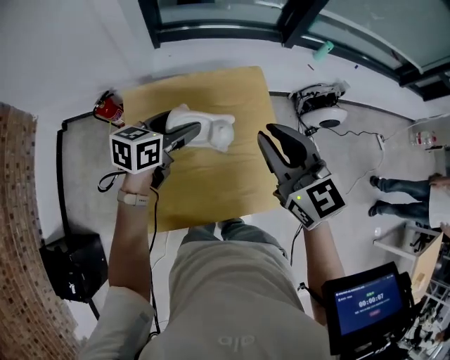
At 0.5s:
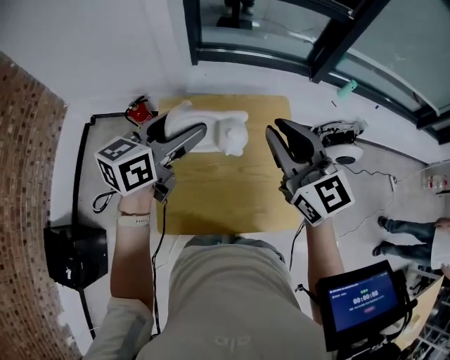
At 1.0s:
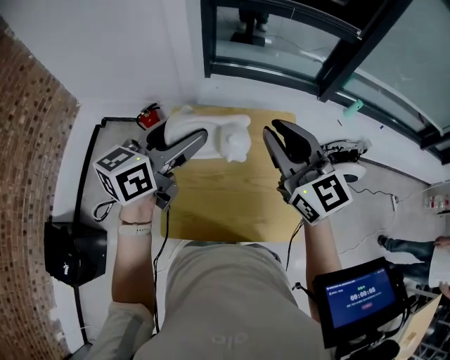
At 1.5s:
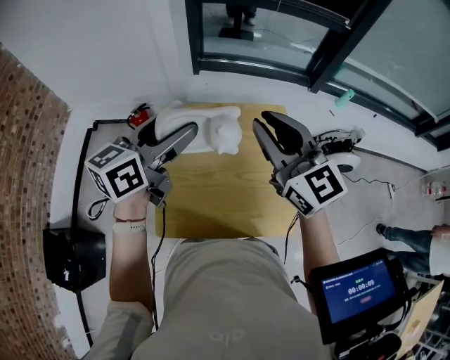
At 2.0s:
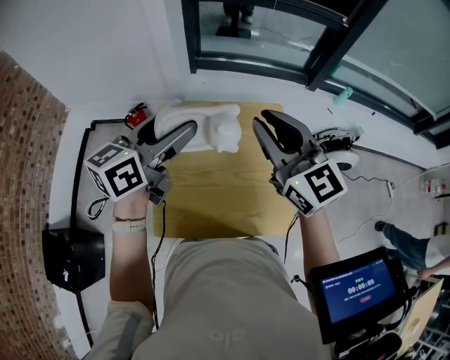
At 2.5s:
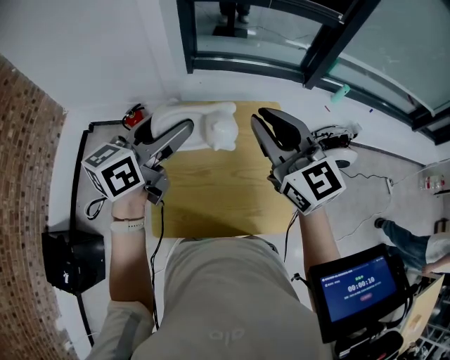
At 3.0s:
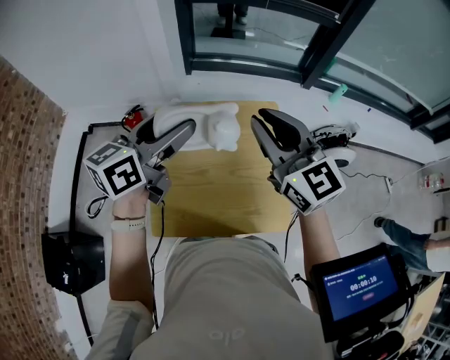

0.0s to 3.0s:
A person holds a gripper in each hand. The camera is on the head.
0.0s to 1.5s: The right gripper goes about 10 cm upward and to the left, while the left gripper moves upward and to the left, roughly 20 cm, and swivels approximately 30 degrees.
1.5s to 3.0s: Both grippers stay put.

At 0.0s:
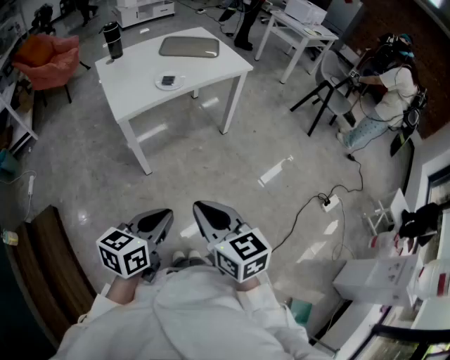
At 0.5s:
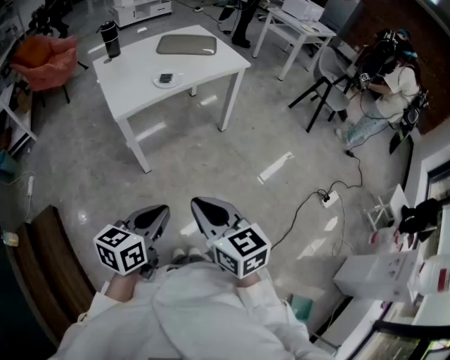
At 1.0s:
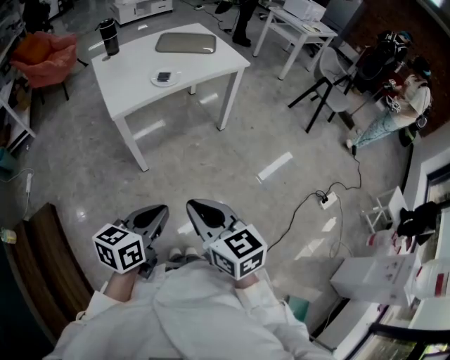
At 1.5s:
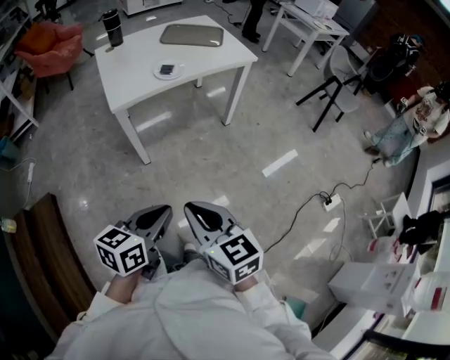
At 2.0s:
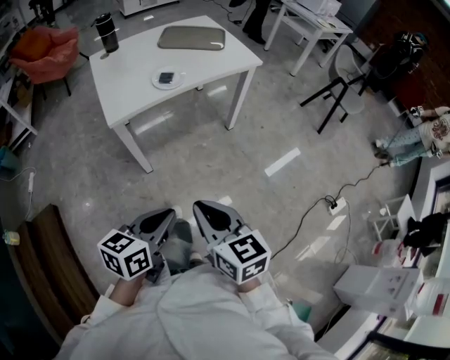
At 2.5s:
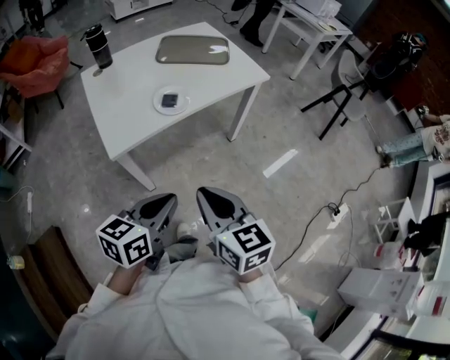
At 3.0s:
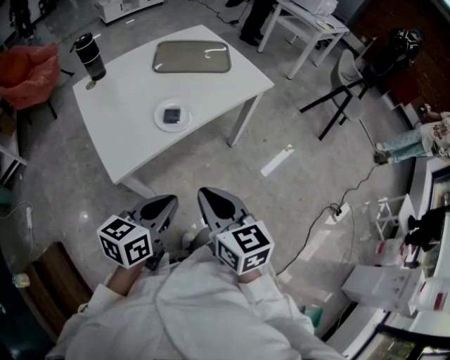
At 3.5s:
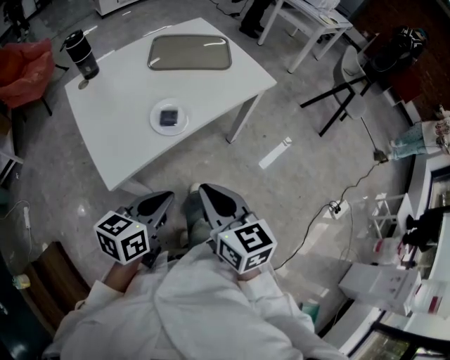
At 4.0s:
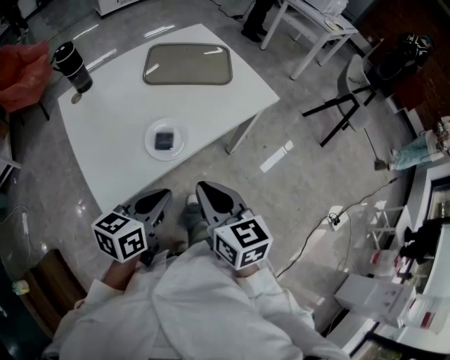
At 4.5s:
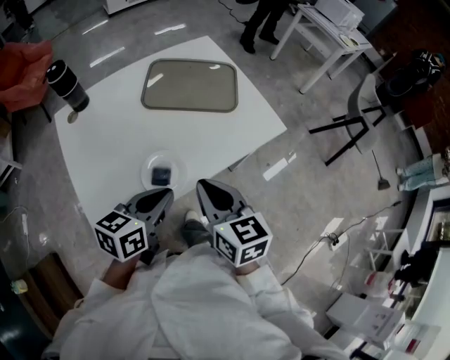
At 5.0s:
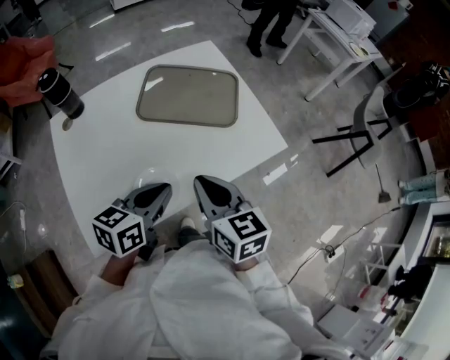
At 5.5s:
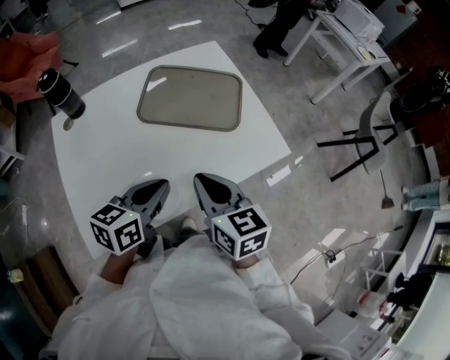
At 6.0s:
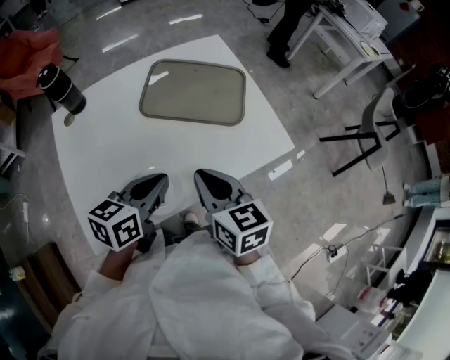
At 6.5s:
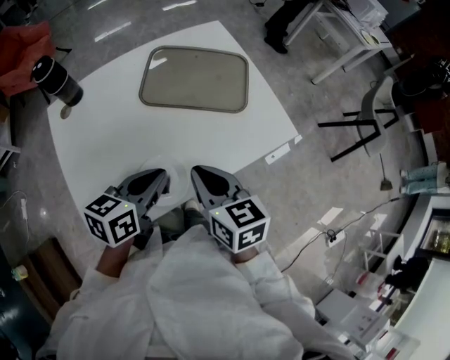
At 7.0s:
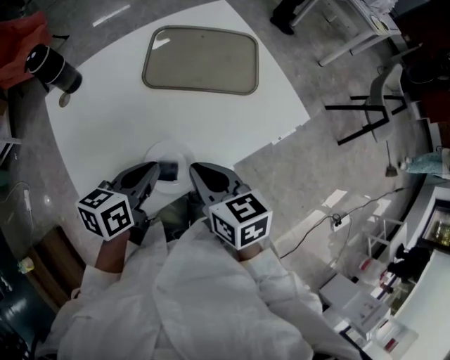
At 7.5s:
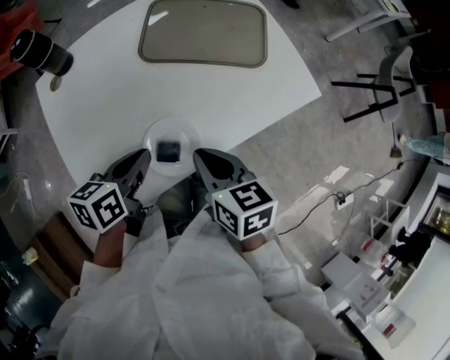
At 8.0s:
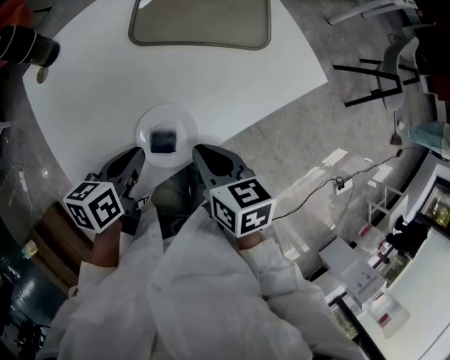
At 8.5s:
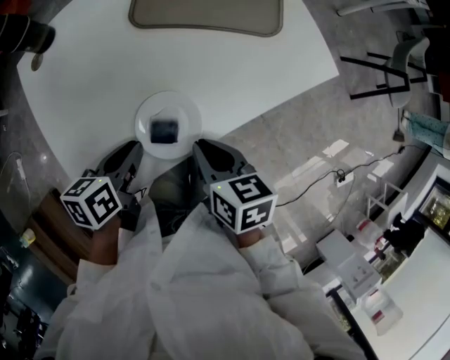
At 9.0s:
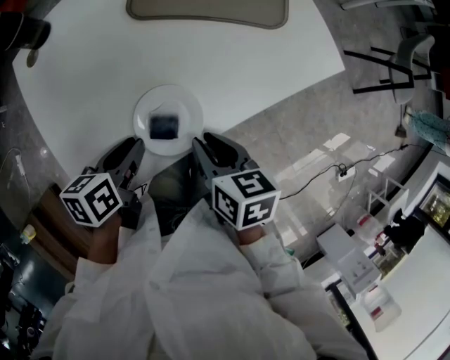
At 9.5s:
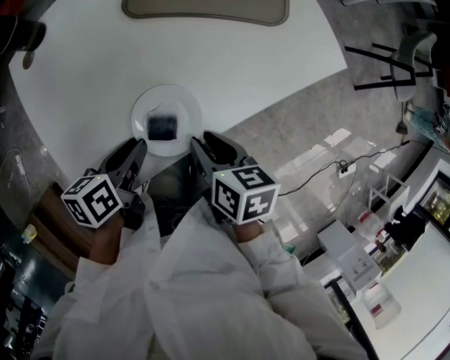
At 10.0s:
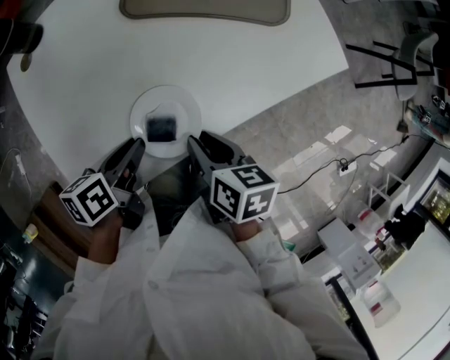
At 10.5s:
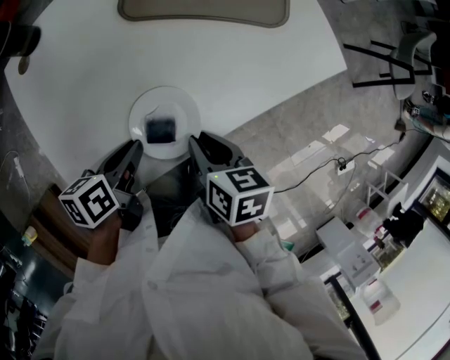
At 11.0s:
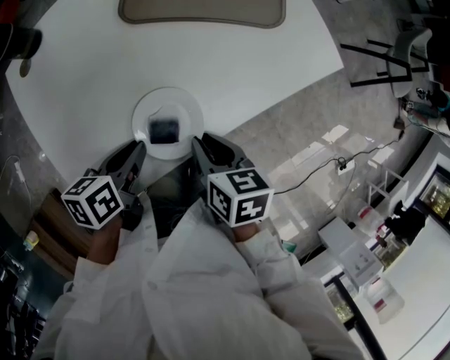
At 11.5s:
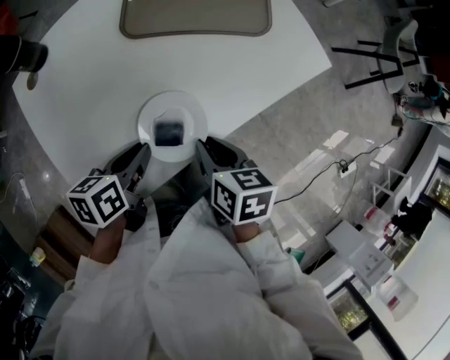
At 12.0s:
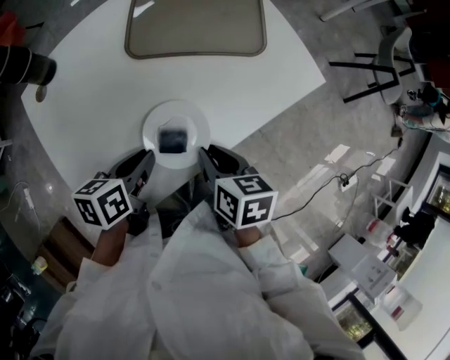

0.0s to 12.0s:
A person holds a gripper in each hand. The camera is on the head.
0.0s to 2.0s: The grippers both shift forward by roughly 10 cm.
2.0s to 4.0s: The two grippers travel together, forward, approximately 40 cm.
4.0s to 6.0s: The two grippers go some 25 cm forward.
6.0s to 8.0s: The right gripper is displaced downward by about 10 cm, and swivels roughly 20 degrees. Meanwhile the left gripper travels downward and to the left by some 15 cm, and changes its angle by some 20 degrees.
8.0s to 10.0s: The right gripper is displaced downward by roughly 5 cm, and opens its fingers.
10.0s to 12.0s: The grippers make only small movements.

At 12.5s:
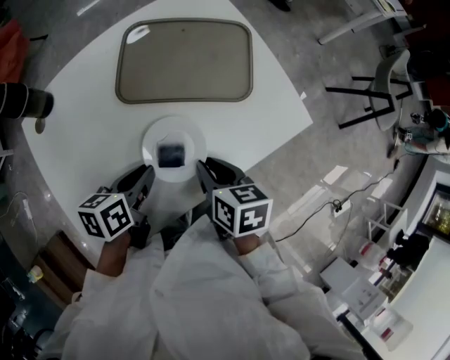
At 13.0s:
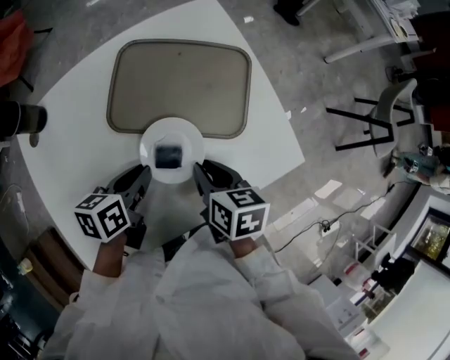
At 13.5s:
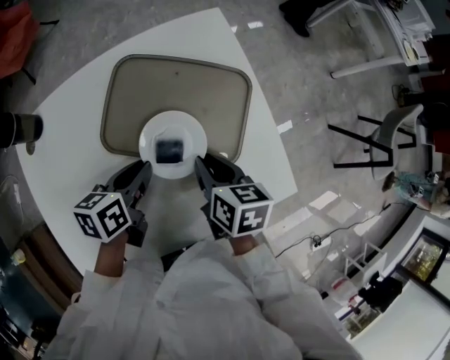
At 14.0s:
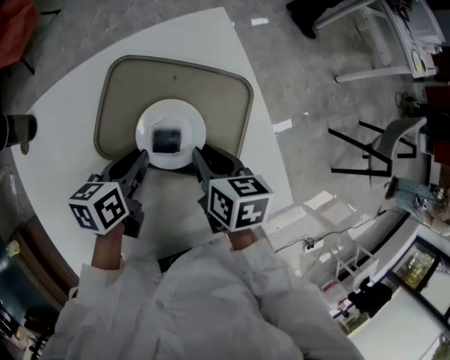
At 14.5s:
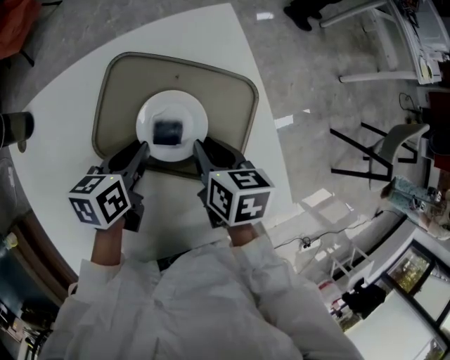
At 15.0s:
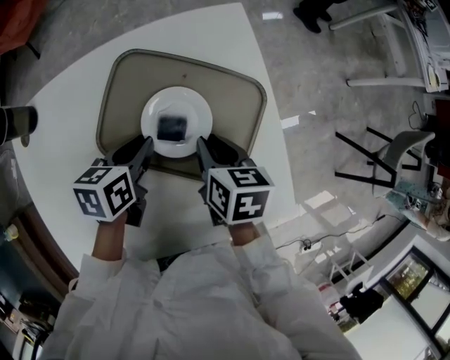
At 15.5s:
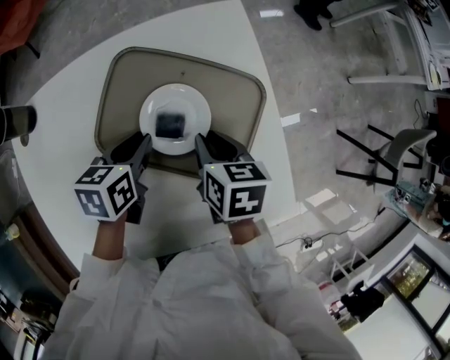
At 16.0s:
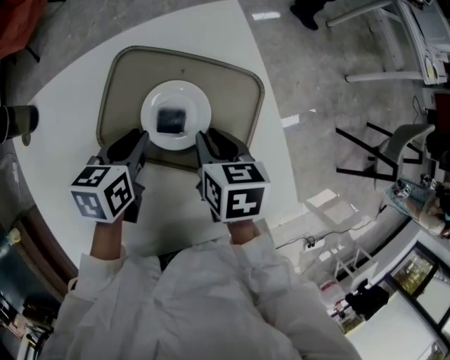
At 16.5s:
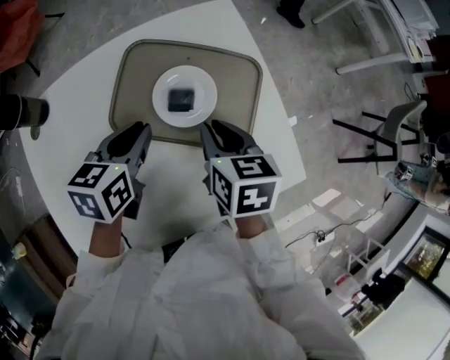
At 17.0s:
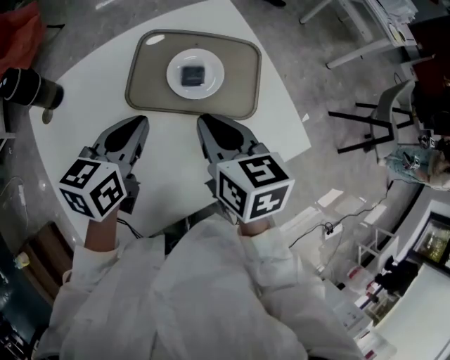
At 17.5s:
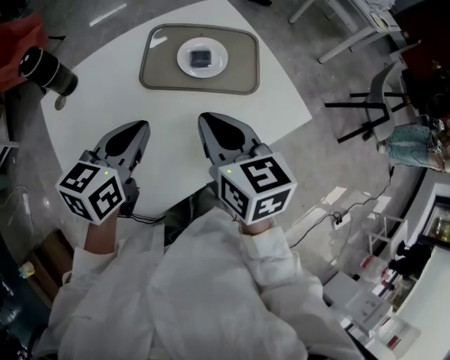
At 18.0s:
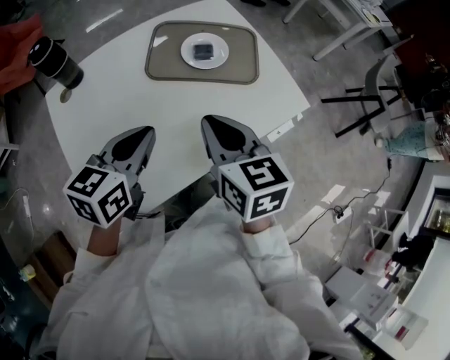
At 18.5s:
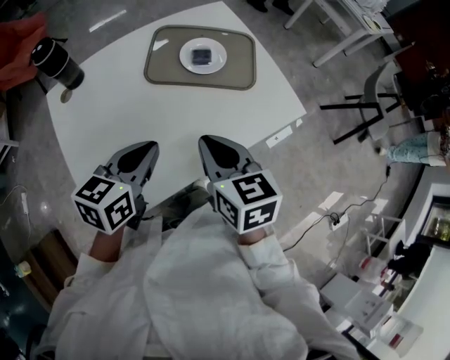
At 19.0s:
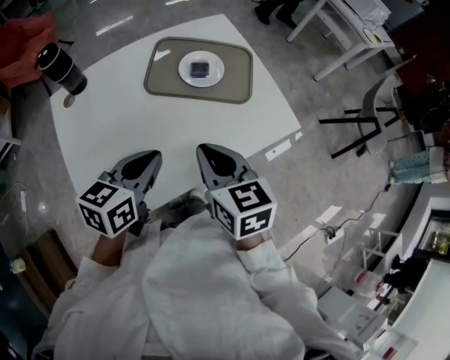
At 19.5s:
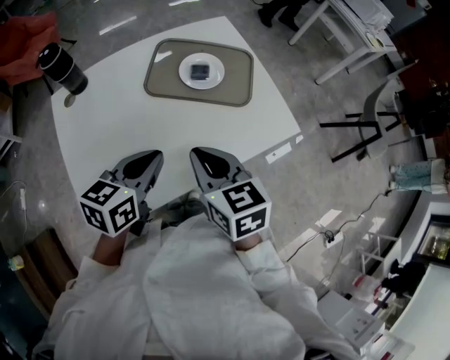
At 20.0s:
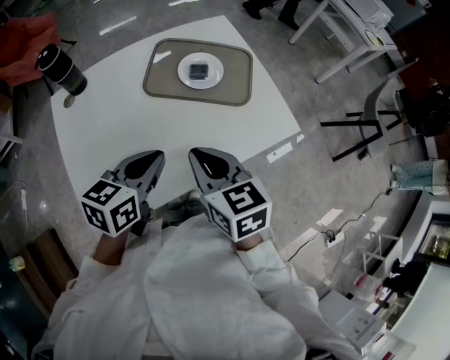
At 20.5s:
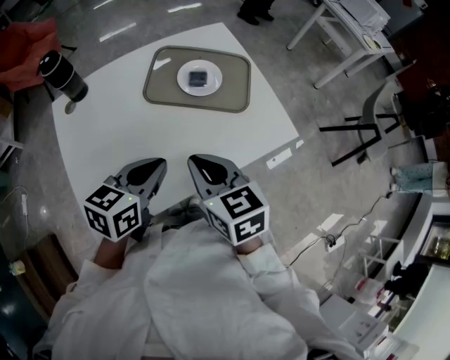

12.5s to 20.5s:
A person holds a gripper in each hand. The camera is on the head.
12.5s to 14.5s: Both grippers travel together forward, some 25 cm.
14.5s to 16.5s: Both grippers move upward, approximately 5 cm.
16.5s to 18.5s: The two grippers go roughly 25 cm backward.
18.5s to 20.5s: The grippers stay close to where they were, moving slightly.

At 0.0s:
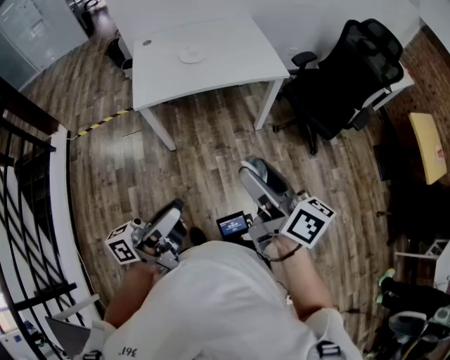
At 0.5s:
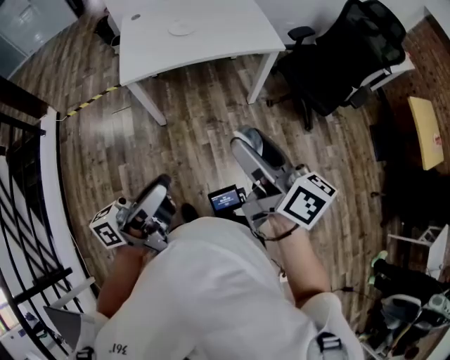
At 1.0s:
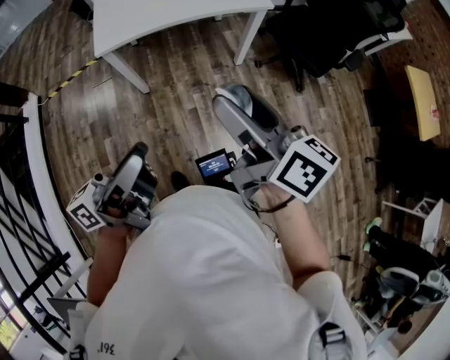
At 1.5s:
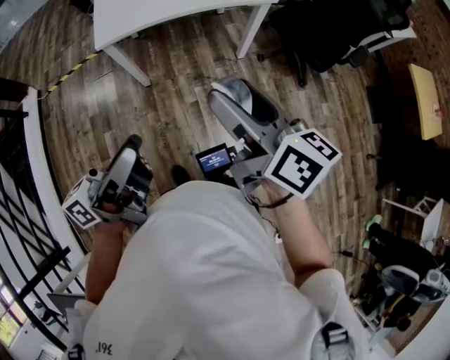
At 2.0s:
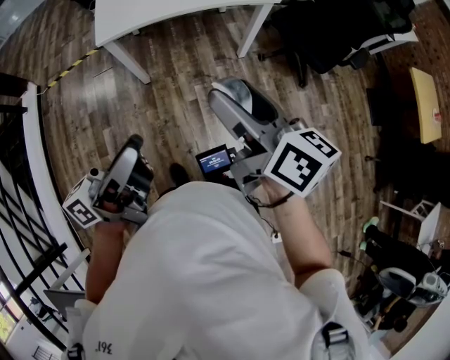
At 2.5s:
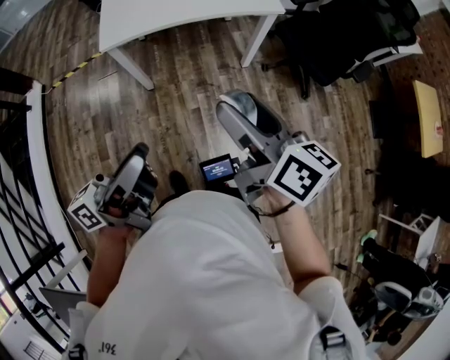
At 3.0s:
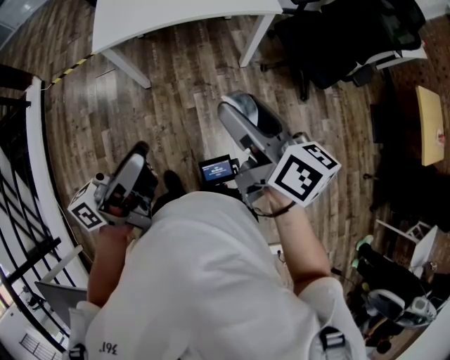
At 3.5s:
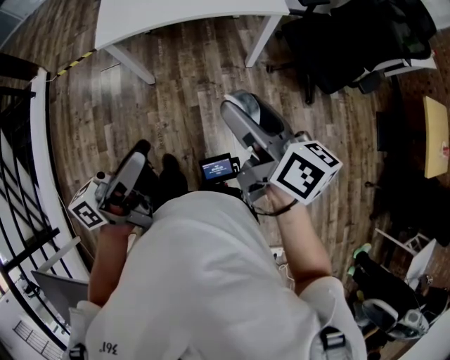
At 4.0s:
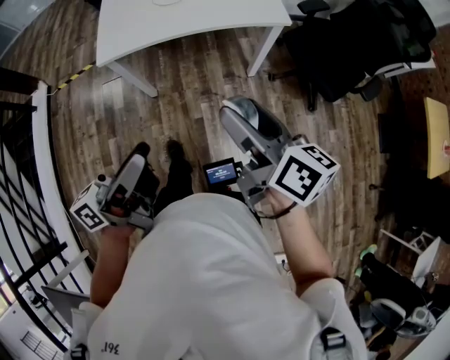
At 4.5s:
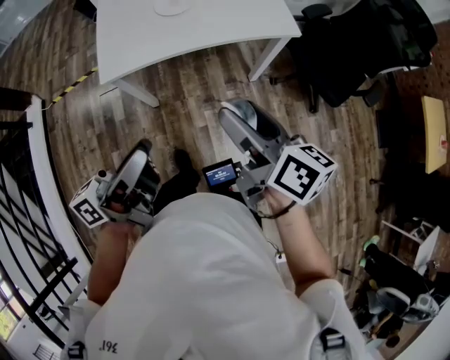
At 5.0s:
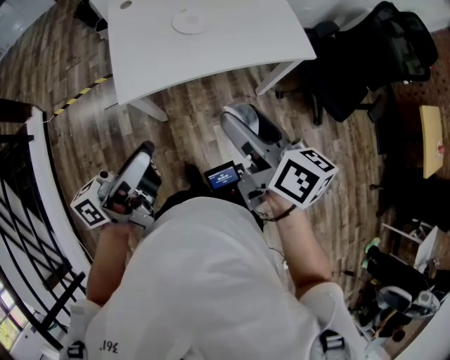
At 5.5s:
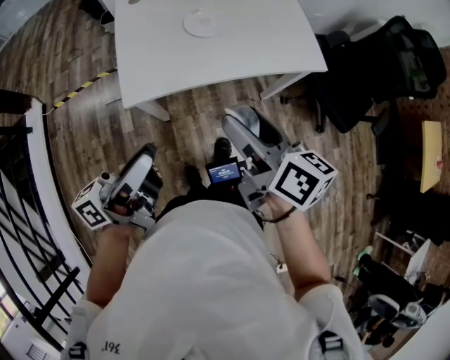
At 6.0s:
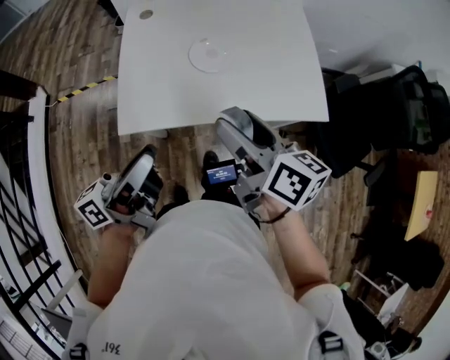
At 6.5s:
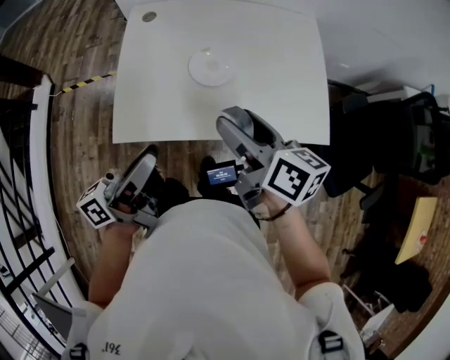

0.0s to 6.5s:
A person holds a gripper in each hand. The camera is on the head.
0.0s to 2.0s: The grippers stay close to where they were, moving slightly.
2.0s to 4.5s: Both grippers move forward, roughly 20 cm.
4.5s to 6.5s: The grippers both shift forward by roughly 30 cm.
